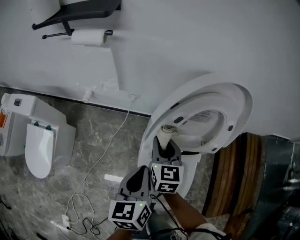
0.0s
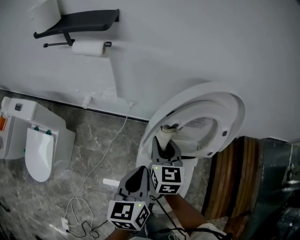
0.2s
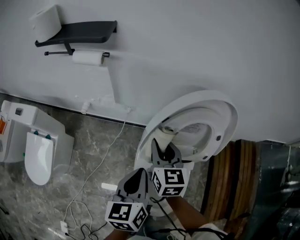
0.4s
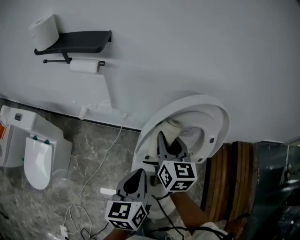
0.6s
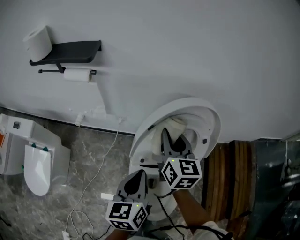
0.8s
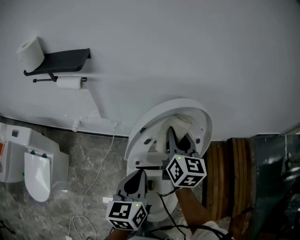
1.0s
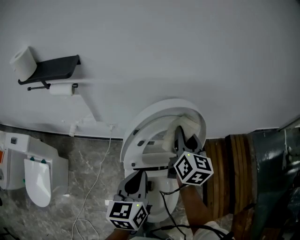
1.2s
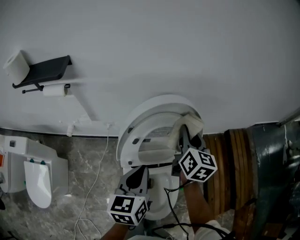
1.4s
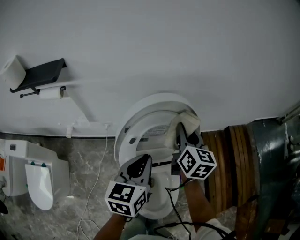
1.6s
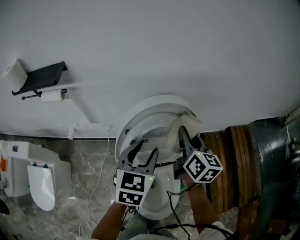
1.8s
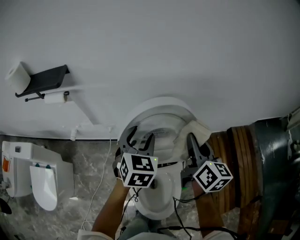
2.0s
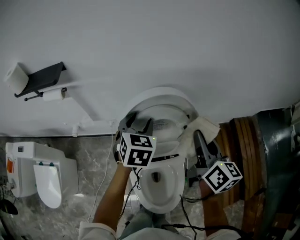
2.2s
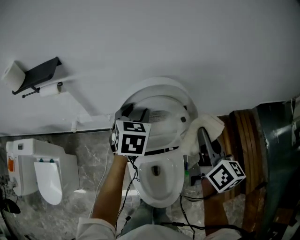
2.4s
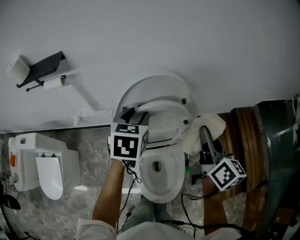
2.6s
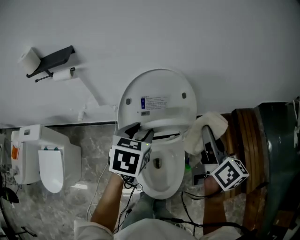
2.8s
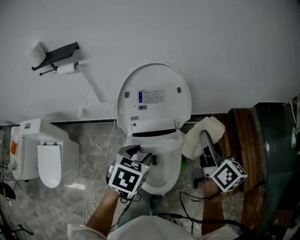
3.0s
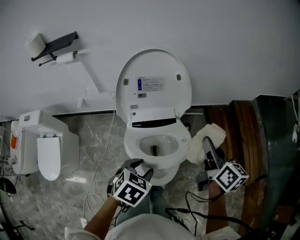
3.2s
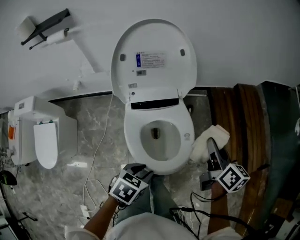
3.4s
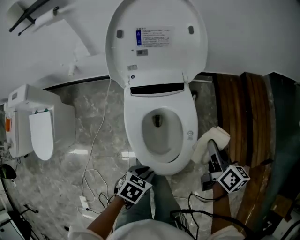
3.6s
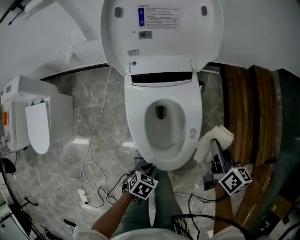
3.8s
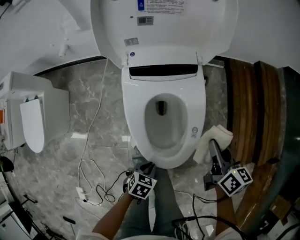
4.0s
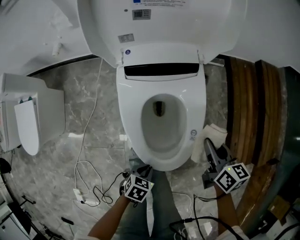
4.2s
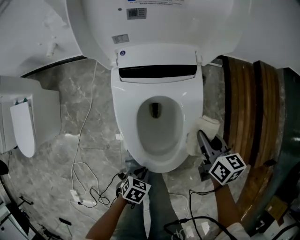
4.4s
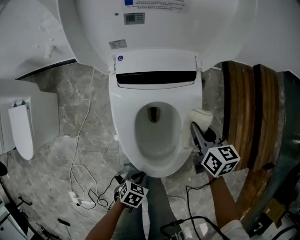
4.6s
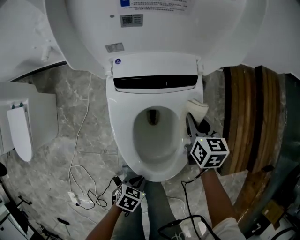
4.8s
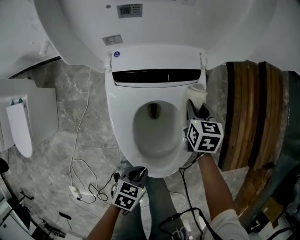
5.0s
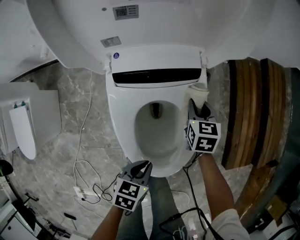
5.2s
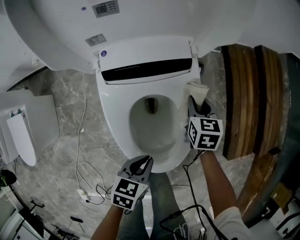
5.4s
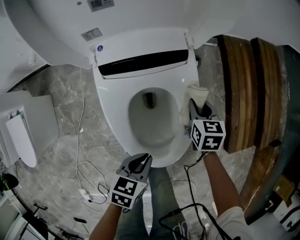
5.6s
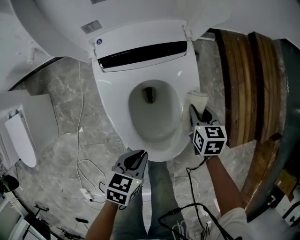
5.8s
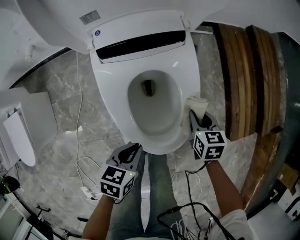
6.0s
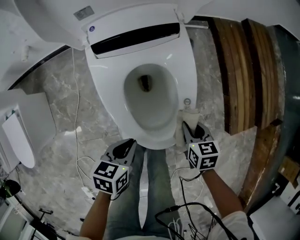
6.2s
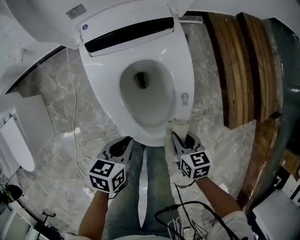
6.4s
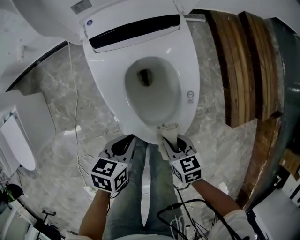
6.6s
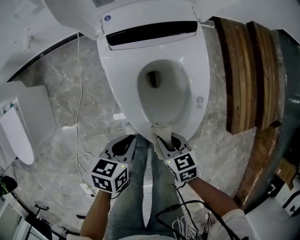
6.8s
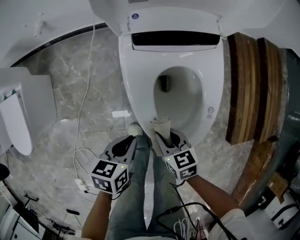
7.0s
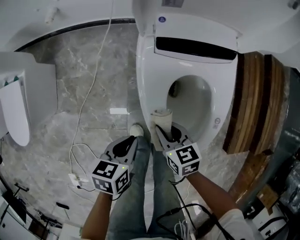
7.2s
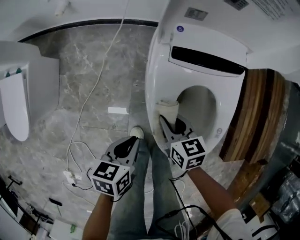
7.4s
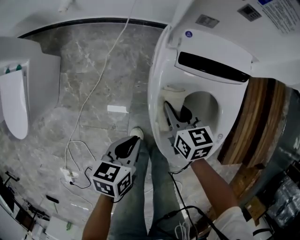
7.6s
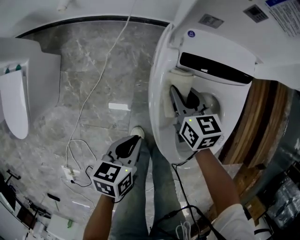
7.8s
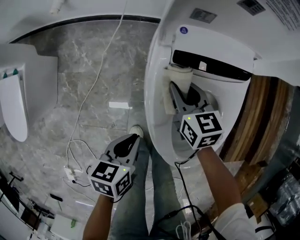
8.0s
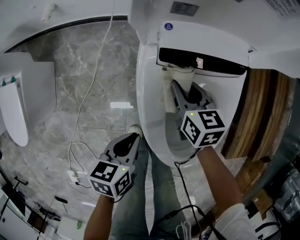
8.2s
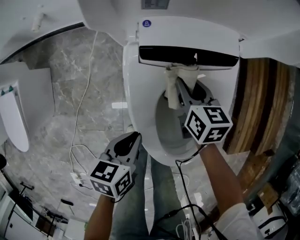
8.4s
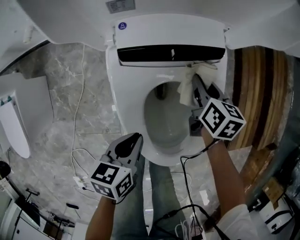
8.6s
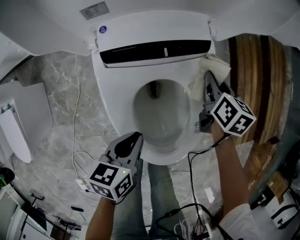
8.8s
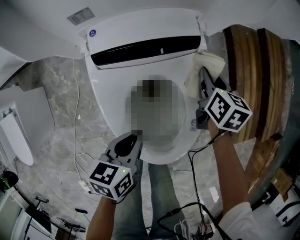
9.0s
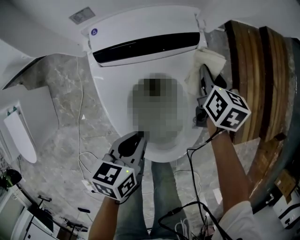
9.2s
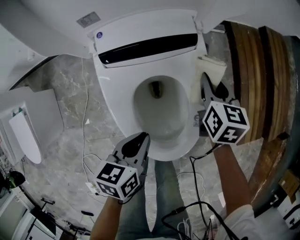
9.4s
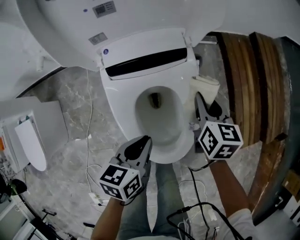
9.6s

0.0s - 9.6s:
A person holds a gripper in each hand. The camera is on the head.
0.0s - 1.6s: The right gripper is displaced to the right and upward by some 30 cm, and swivels about 30 degrees. The left gripper shifts approximately 20 cm to the right, upward and forward, and swivels about 30 degrees.
1.6s - 3.2s: The right gripper shifts about 30 cm backward and to the right, and changes its angle by some 20 degrees. Meanwhile the left gripper shifts roughly 25 cm backward, angles its fingers downward, by about 40 degrees, and opens.
3.2s - 4.8s: The grippers both shift downward by roughly 40 cm. The left gripper rotates roughly 30 degrees, and closes up, while the right gripper changes its angle by about 40 degrees.
4.8s - 6.4s: The left gripper moves upward, to the left and forward, some 10 cm, while the right gripper moves backward, about 25 cm.
6.4s - 8.0s: The right gripper moves forward and to the left, some 35 cm, and swivels some 30 degrees, while the left gripper heads to the left and forward, covering about 15 cm, and changes its angle by roughly 20 degrees.
8.0s - 9.6s: The right gripper heads to the right, covering approximately 30 cm, and swivels approximately 30 degrees. The left gripper is displaced to the right and upward by about 20 cm.

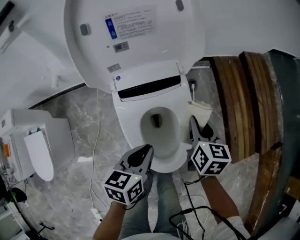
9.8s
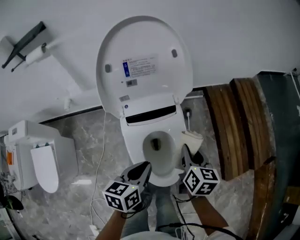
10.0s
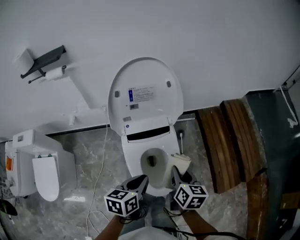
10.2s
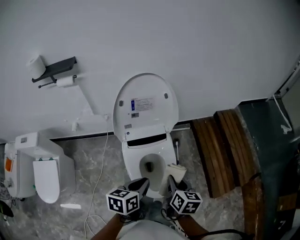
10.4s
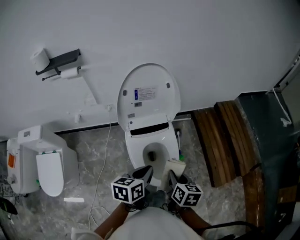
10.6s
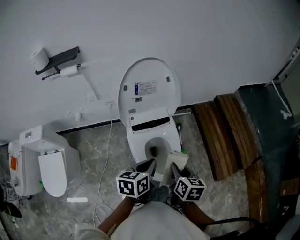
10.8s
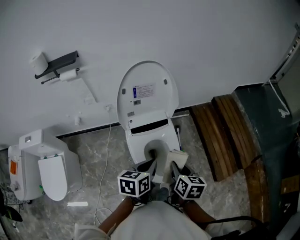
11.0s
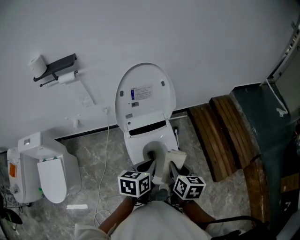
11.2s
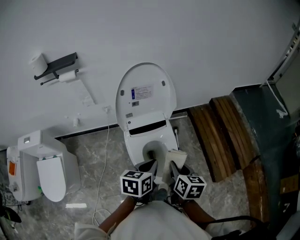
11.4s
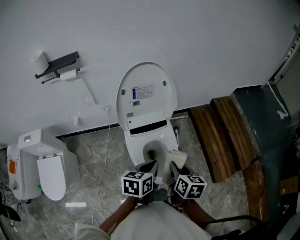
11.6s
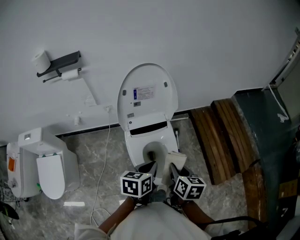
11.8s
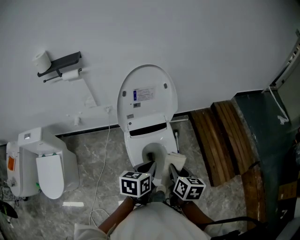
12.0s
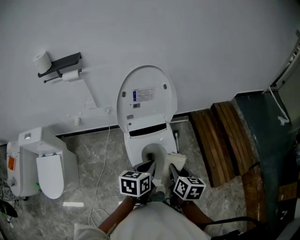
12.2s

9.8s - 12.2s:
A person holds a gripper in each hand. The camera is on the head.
9.8s - 11.0s: The right gripper is displaced upward and backward by about 30 cm; the left gripper heads upward, covering some 20 cm.
11.0s - 12.2s: There are only small adjustments of the grippers.

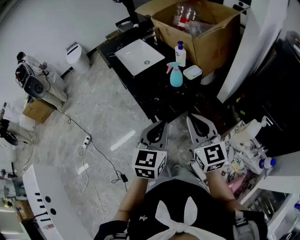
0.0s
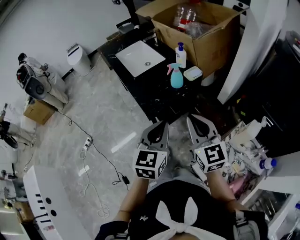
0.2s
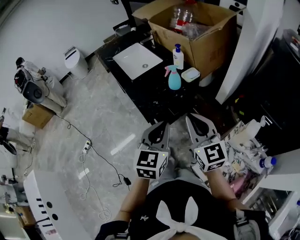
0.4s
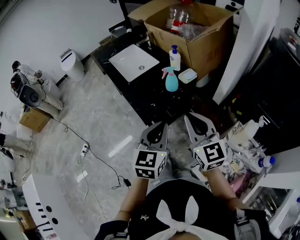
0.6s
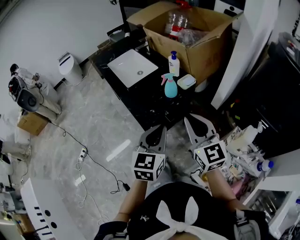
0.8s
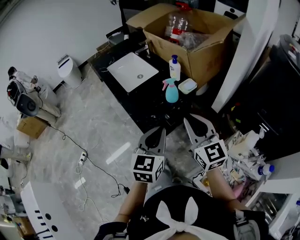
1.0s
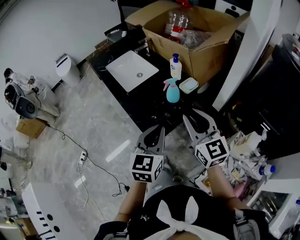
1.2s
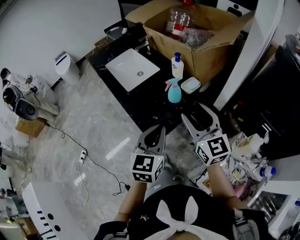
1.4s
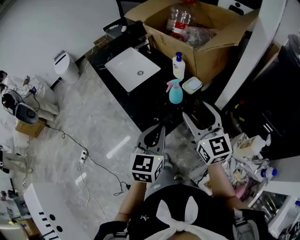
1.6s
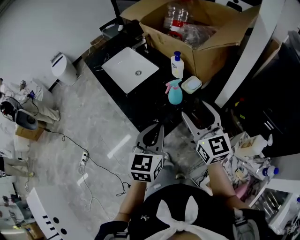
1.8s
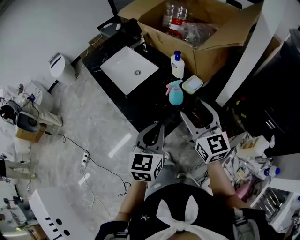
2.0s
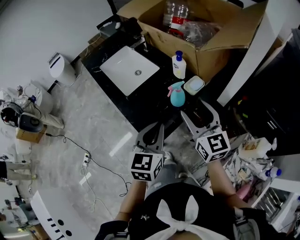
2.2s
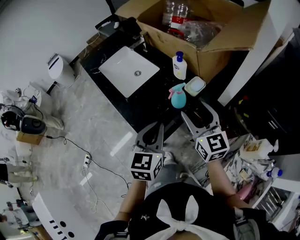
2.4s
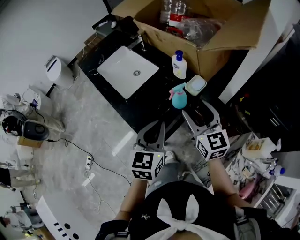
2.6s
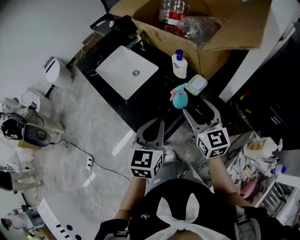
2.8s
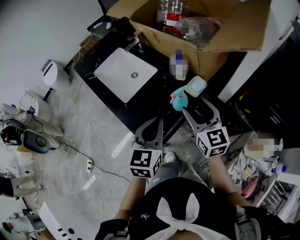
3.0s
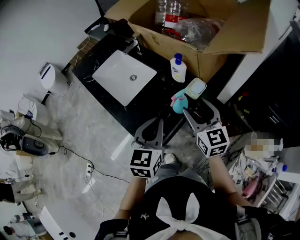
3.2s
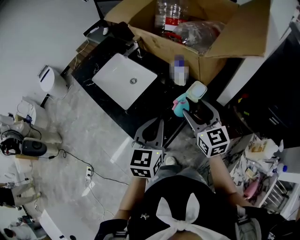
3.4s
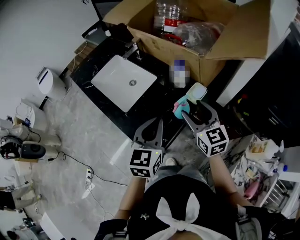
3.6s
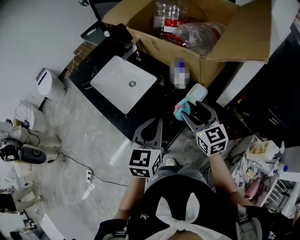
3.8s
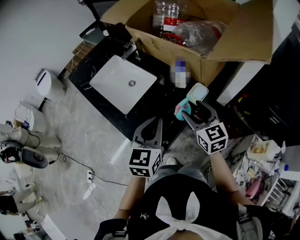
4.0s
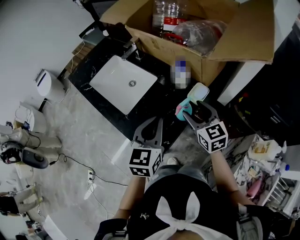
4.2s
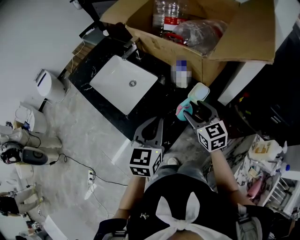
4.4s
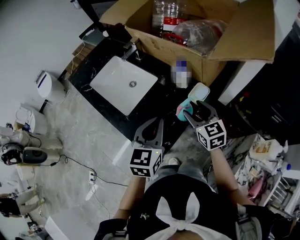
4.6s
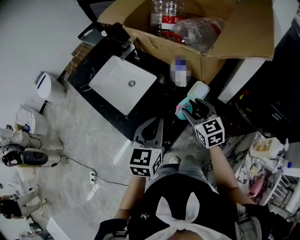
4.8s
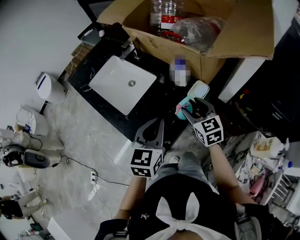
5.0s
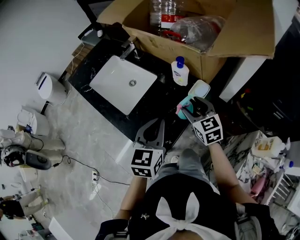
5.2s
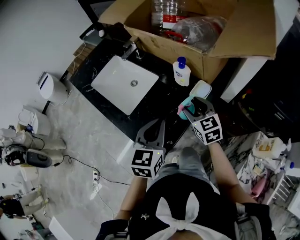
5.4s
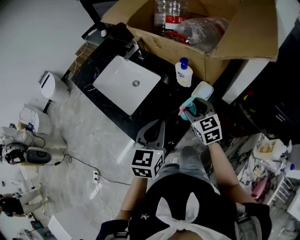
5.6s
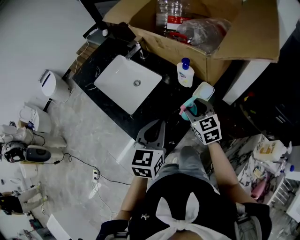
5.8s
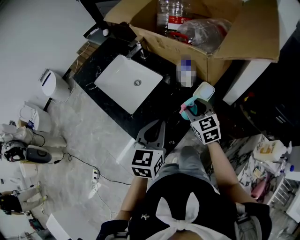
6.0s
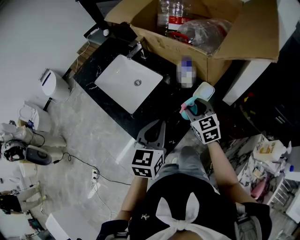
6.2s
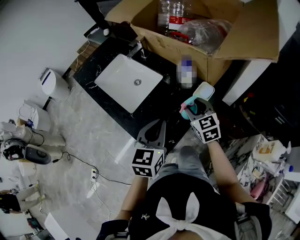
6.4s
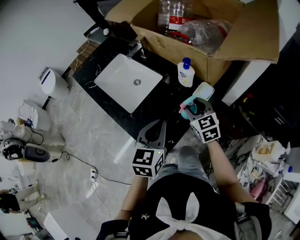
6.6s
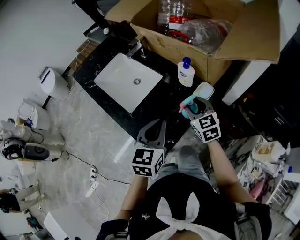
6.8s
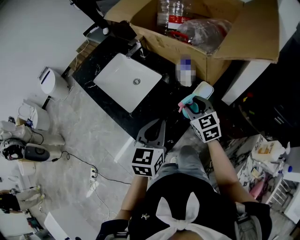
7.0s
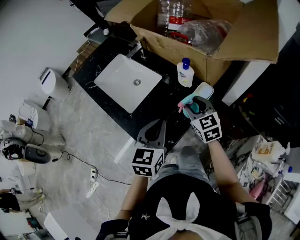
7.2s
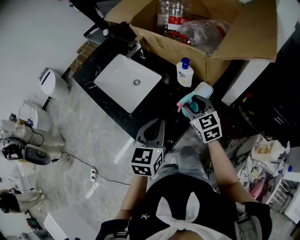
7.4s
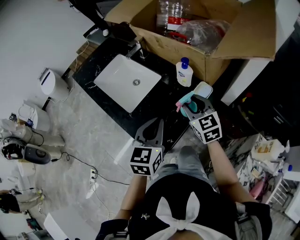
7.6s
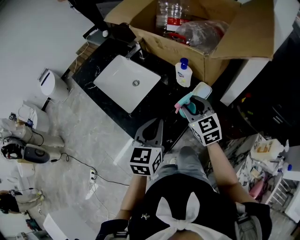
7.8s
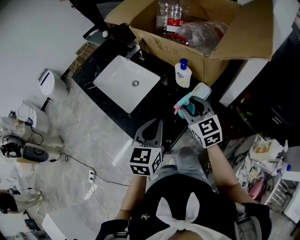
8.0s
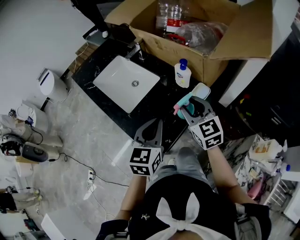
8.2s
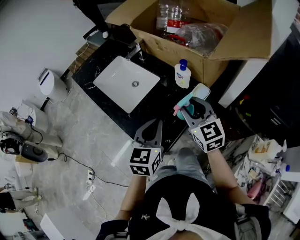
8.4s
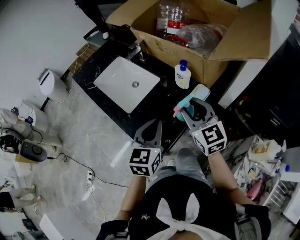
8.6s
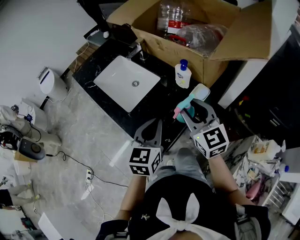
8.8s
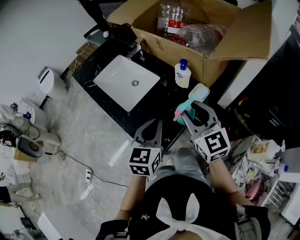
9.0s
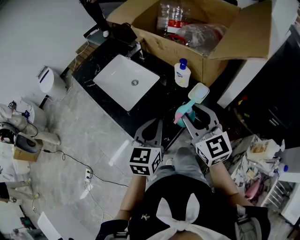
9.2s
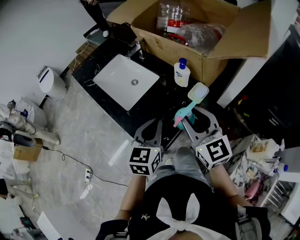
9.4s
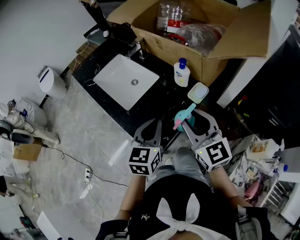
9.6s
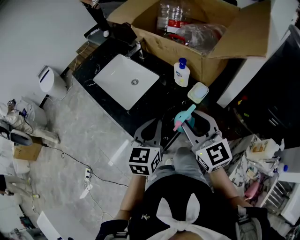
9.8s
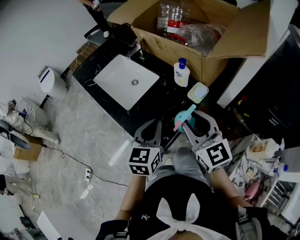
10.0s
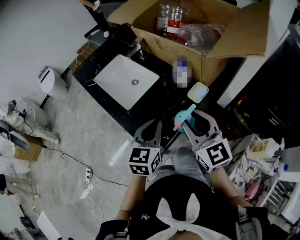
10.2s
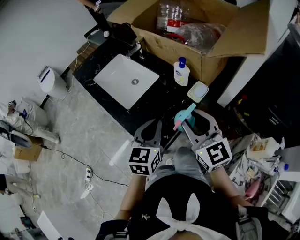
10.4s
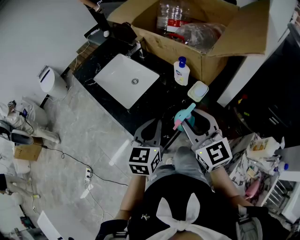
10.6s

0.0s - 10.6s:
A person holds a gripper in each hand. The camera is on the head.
0.0s - 1.6s: Both grippers travel together forward, roughly 15 cm. The right gripper opens up.
1.6s - 3.0s: The right gripper travels forward and downward by roughly 15 cm. Meanwhile the left gripper goes approximately 15 cm forward.
3.0s - 4.6s: The right gripper is displaced downward and forward by roughly 10 cm, while the left gripper heads forward, covering about 5 cm.
4.6s - 7.6s: The grippers make only small movements.
7.6s - 9.0s: The right gripper shifts approximately 10 cm upward and backward.
9.0s - 10.6s: The grippers make only small movements.

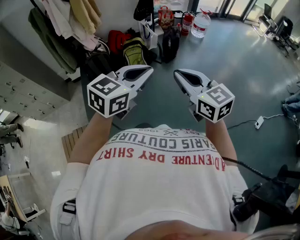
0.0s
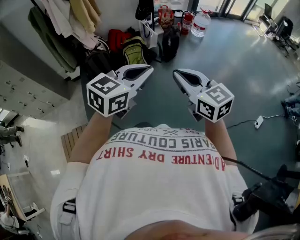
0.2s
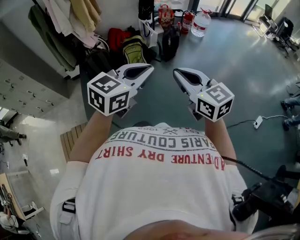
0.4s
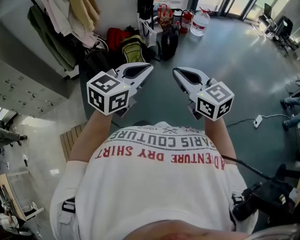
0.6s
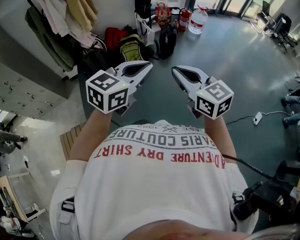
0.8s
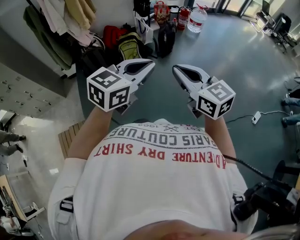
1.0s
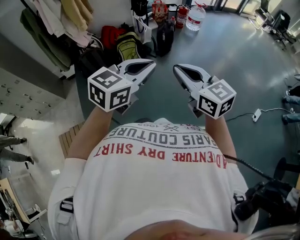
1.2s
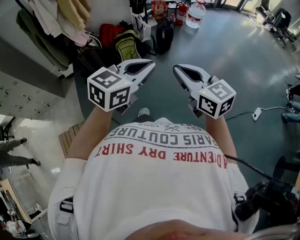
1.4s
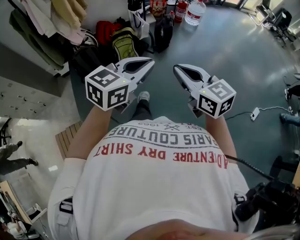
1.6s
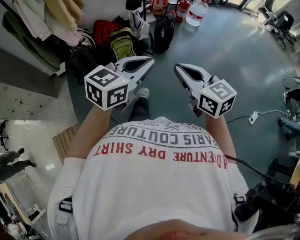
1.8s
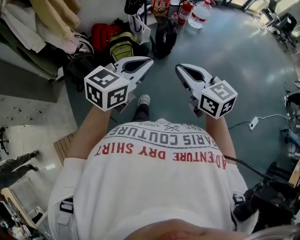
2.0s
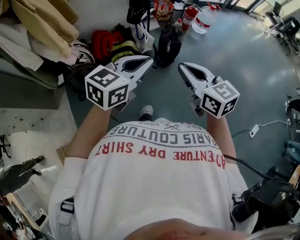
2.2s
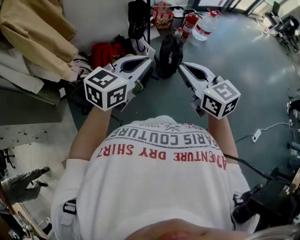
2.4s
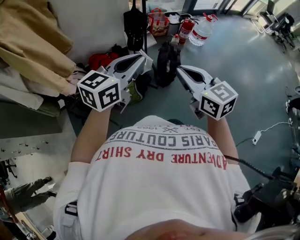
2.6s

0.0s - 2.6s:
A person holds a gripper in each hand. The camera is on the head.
0.0s - 1.2s: The grippers make only small movements.
1.2s - 2.6s: Both grippers are carried forward, some 60 cm.
